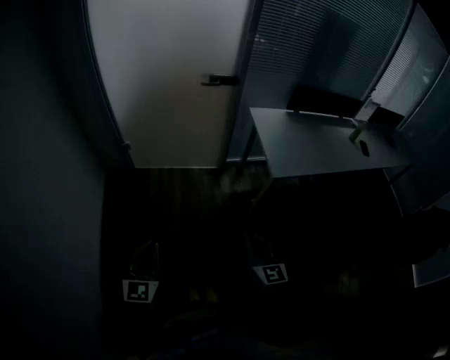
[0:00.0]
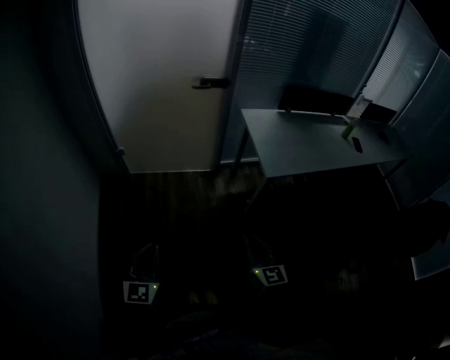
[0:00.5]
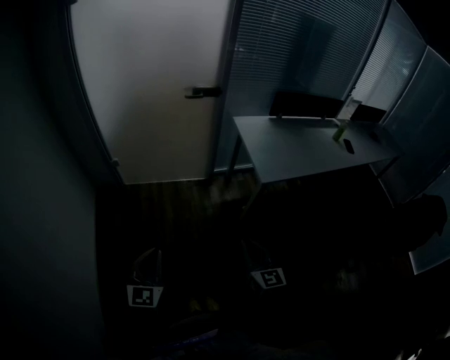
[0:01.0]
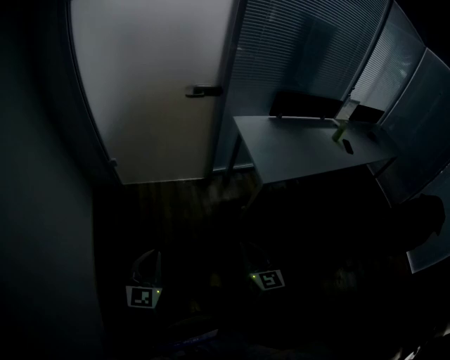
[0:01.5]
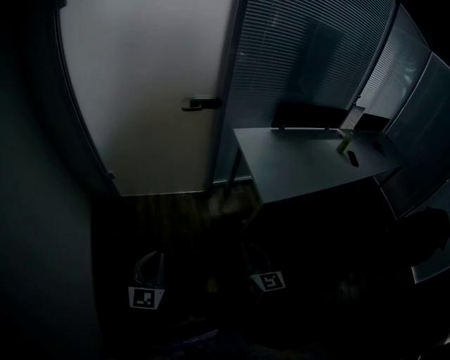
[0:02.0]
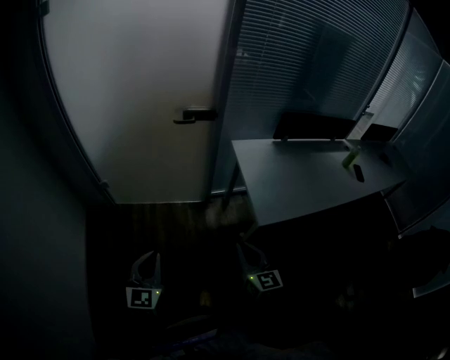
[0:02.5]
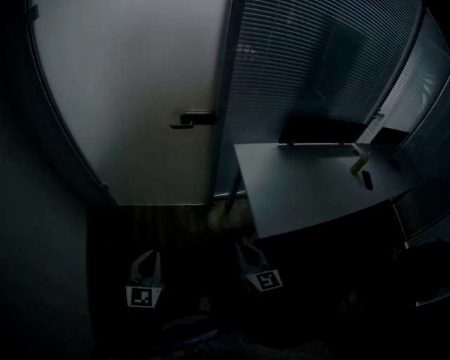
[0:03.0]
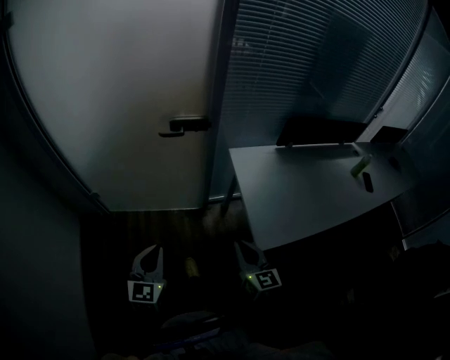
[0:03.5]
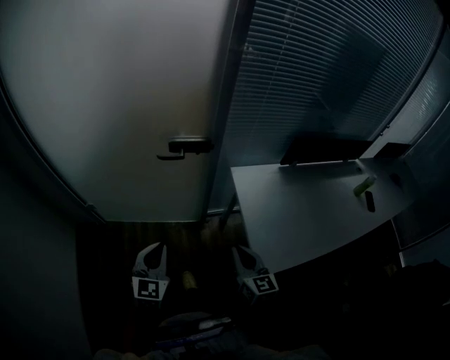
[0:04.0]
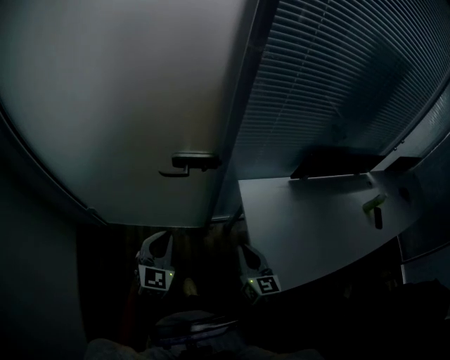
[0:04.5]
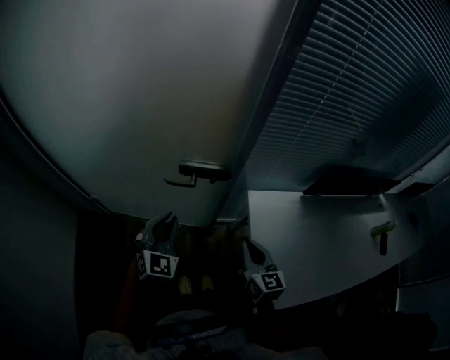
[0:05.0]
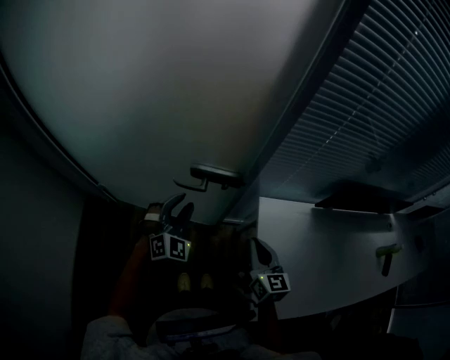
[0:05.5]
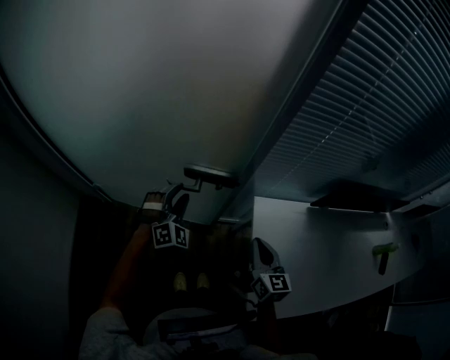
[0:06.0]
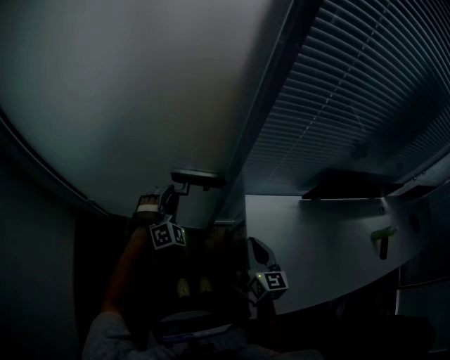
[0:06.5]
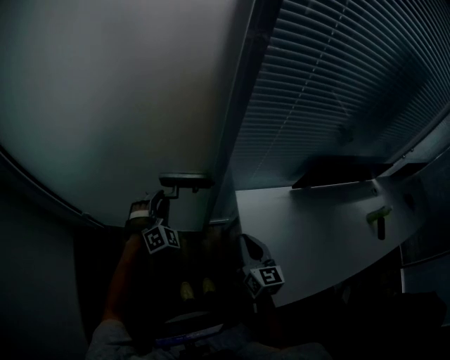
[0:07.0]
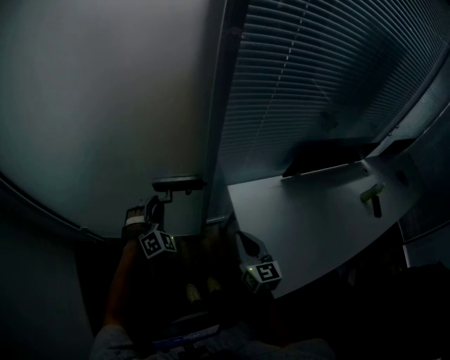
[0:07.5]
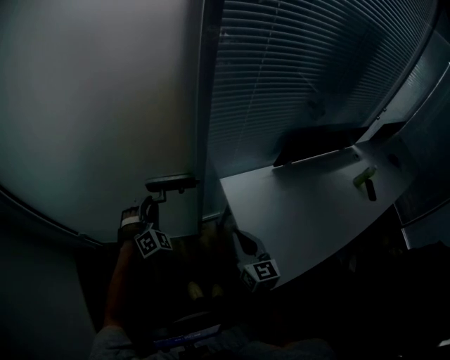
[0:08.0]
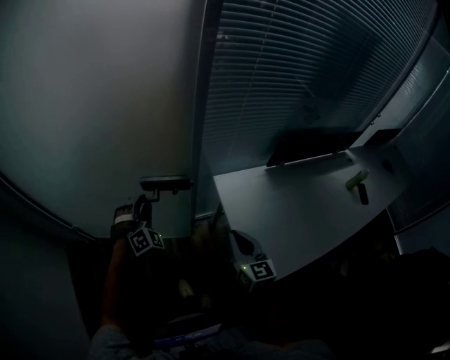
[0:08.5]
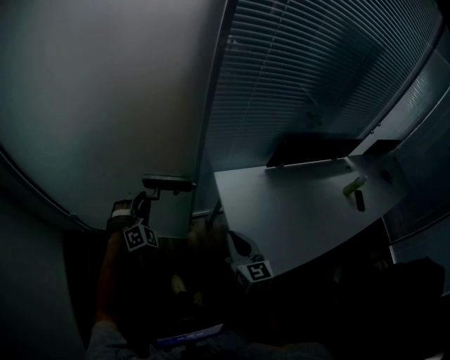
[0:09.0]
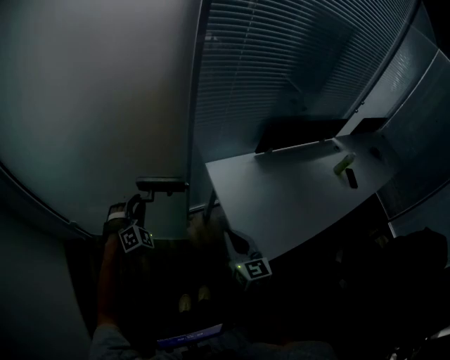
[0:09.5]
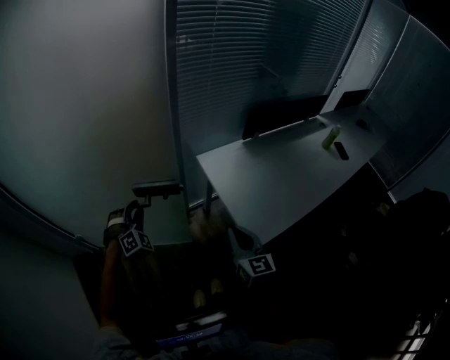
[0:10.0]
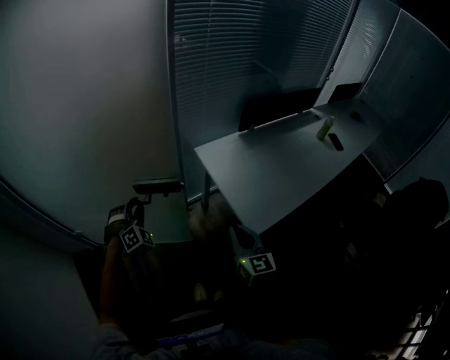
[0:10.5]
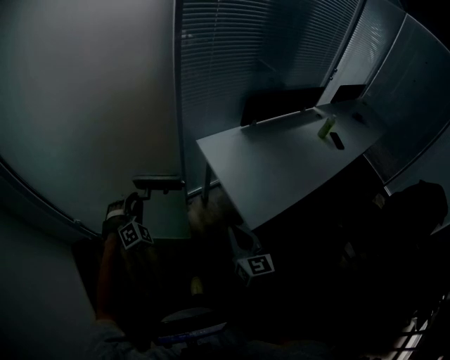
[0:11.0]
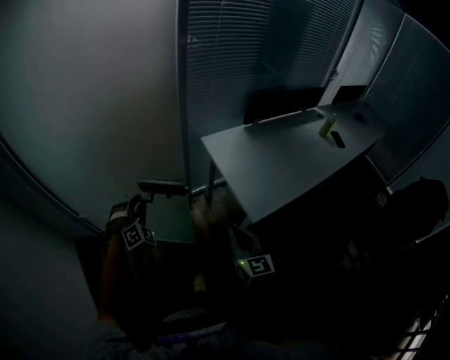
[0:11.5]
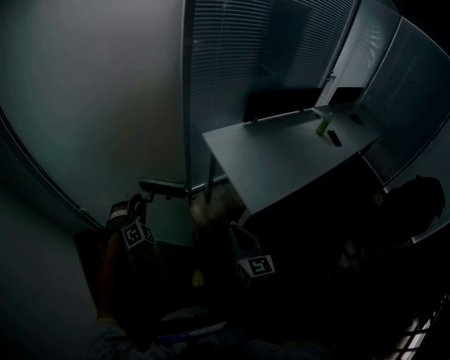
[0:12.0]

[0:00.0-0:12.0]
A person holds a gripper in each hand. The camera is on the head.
0:00.0 to 0:02.0: The two grippers go some 10 cm forward.
0:02.0 to 0:04.0: Both grippers move forward, approximately 35 cm.
0:04.0 to 0:06.0: The two grippers go some 25 cm forward. The left gripper twists some 40 degrees clockwise, seen from behind, and opens up.
0:06.0 to 0:08.0: The right gripper goes some 5 cm backward.
0:08.0 to 0:10.0: The two grippers go some 15 cm backward.
0:10.0 to 0:12.0: Both grippers move backward, approximately 15 cm.

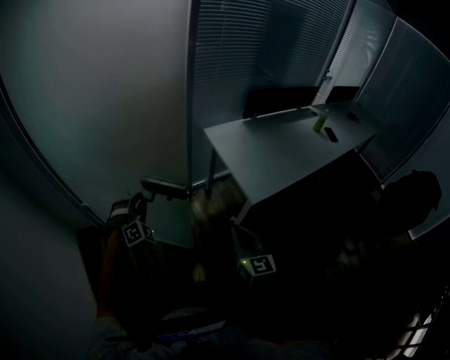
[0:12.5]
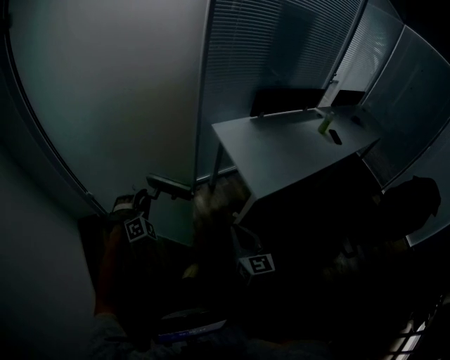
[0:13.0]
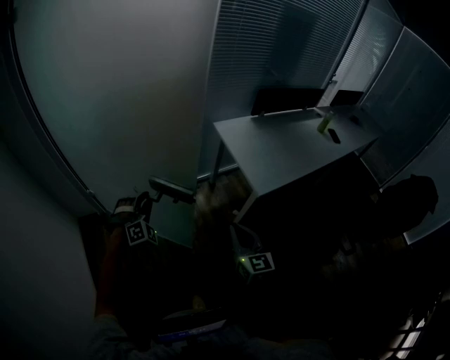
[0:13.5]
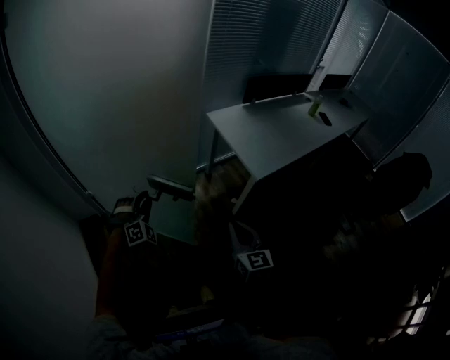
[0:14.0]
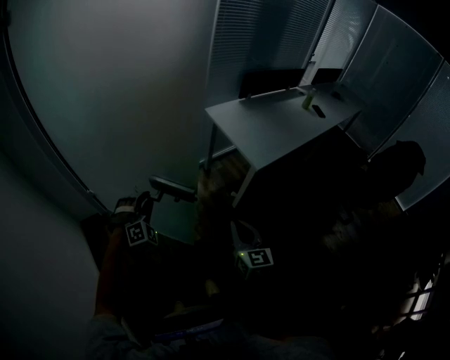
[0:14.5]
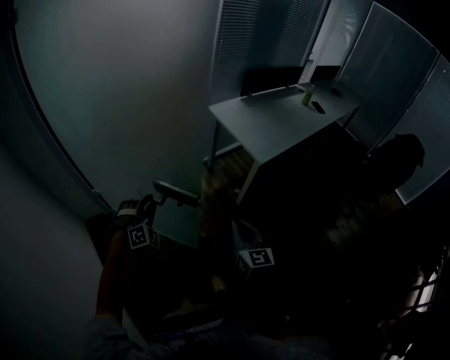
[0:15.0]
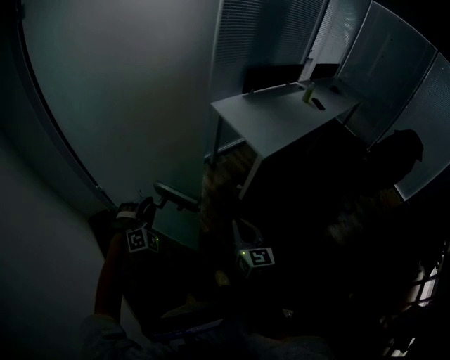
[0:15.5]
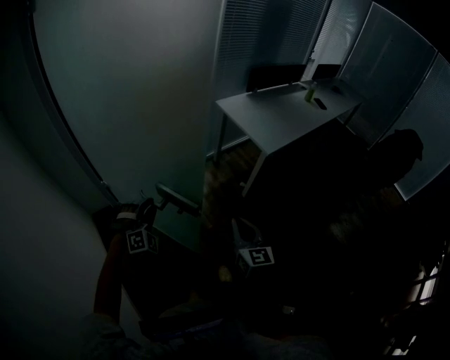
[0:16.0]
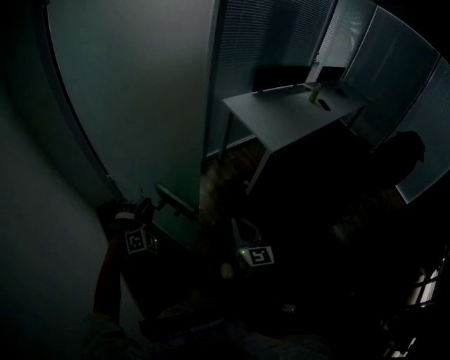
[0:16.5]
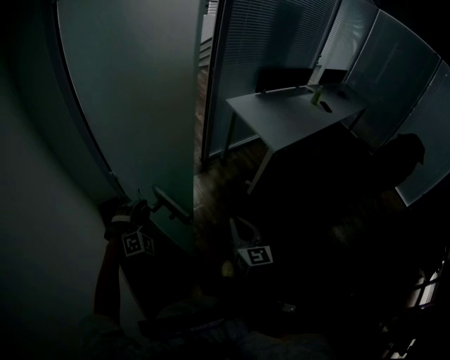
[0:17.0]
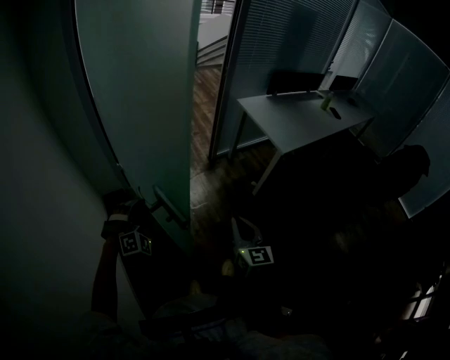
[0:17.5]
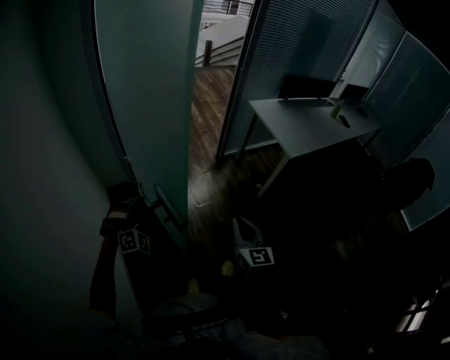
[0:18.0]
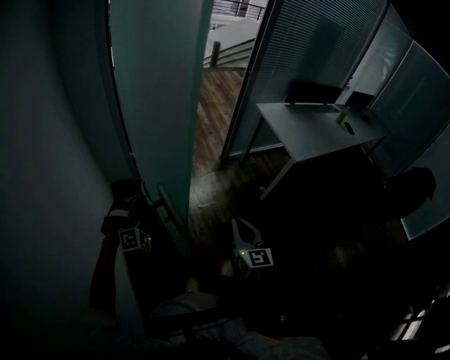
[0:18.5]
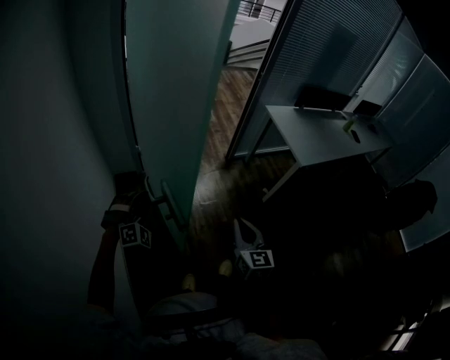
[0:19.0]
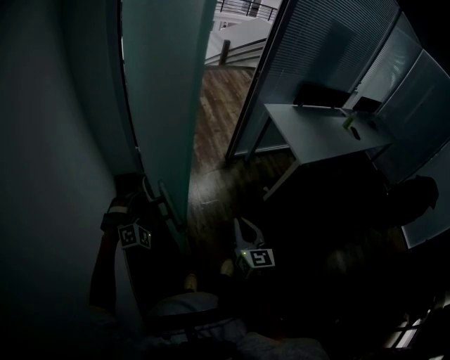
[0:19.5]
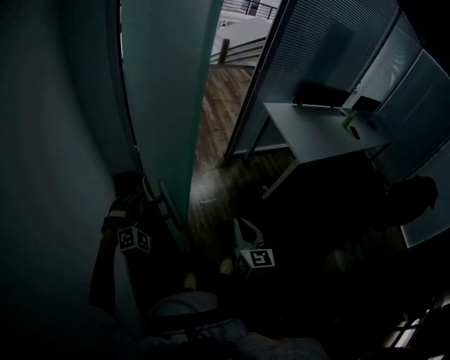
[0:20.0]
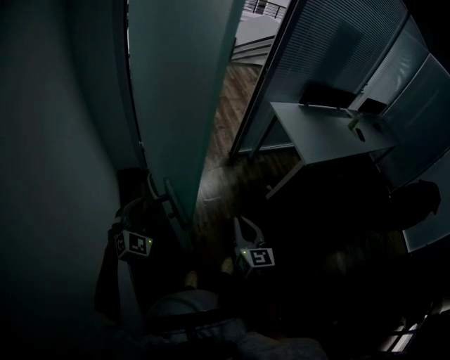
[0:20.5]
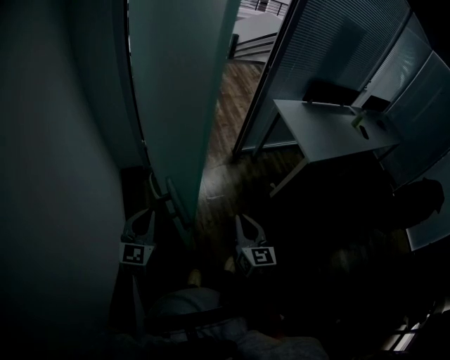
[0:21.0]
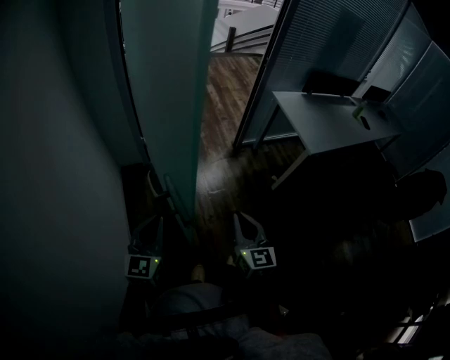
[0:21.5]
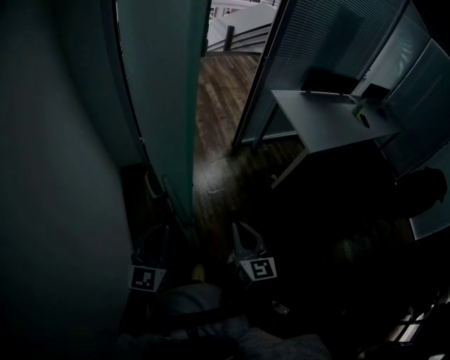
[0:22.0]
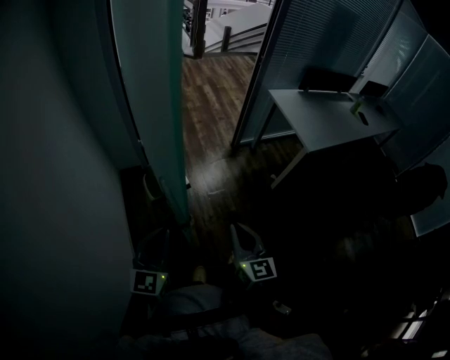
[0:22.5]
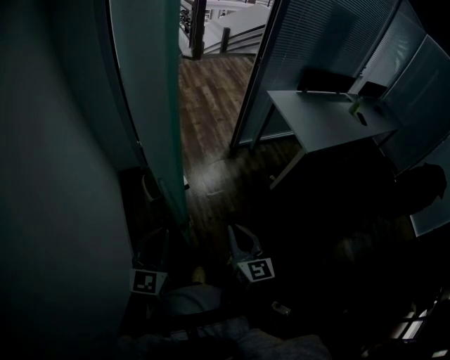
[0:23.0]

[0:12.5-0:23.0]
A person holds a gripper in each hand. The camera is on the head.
0:12.5 to 0:14.5: Both grippers move backward and to the left, about 15 cm.
0:14.5 to 0:16.5: Both grippers travel together backward and to the left, about 20 cm.
0:16.5 to 0:19.0: The left gripper is displaced to the left and backward by approximately 15 cm. The right gripper moves to the left, approximately 10 cm.
0:19.0 to 0:21.0: The left gripper is displaced backward and upward by approximately 10 cm, rotates around the line of its fingers by about 60 degrees, counterclockwise from behind, and closes.
0:21.0 to 0:23.0: The left gripper travels to the right and backward by approximately 10 cm.

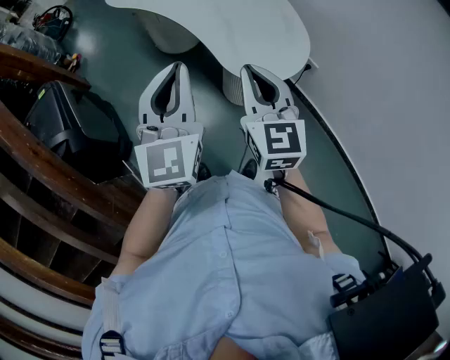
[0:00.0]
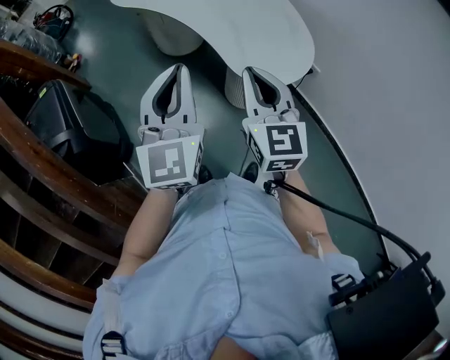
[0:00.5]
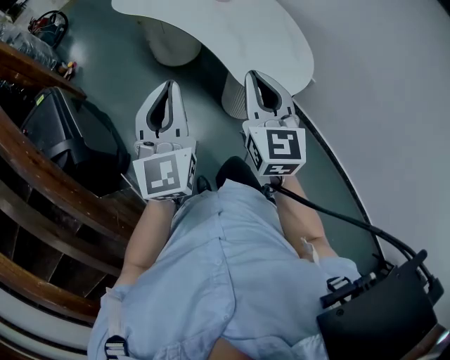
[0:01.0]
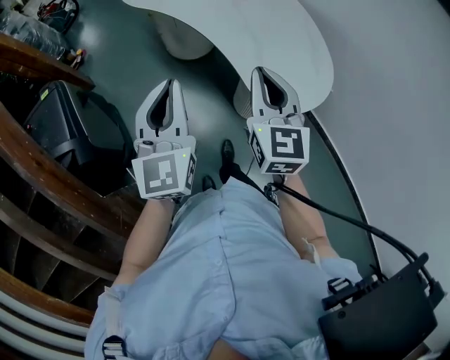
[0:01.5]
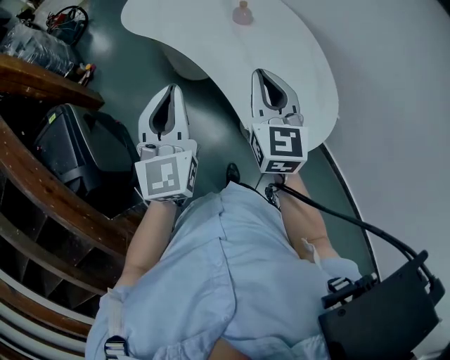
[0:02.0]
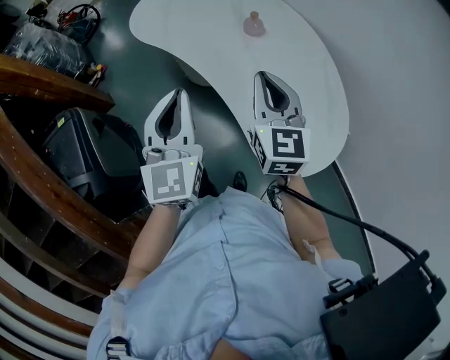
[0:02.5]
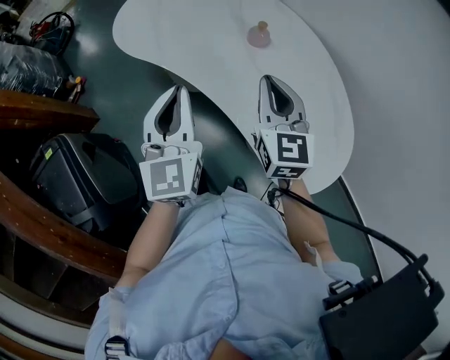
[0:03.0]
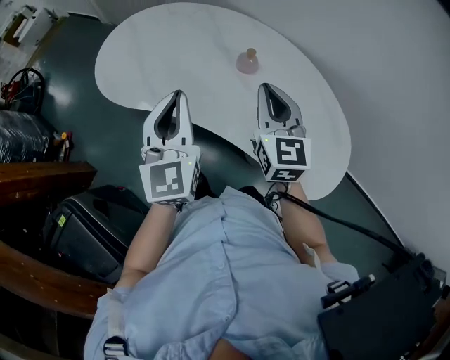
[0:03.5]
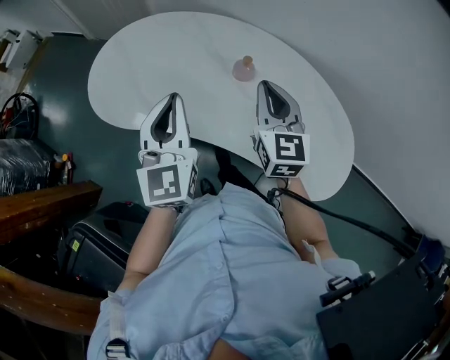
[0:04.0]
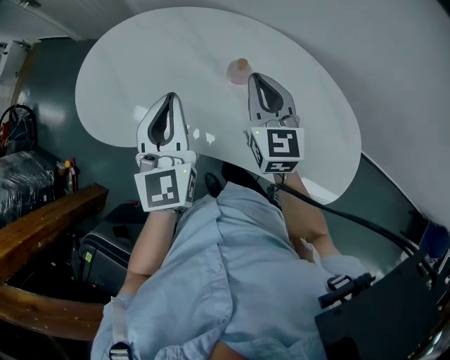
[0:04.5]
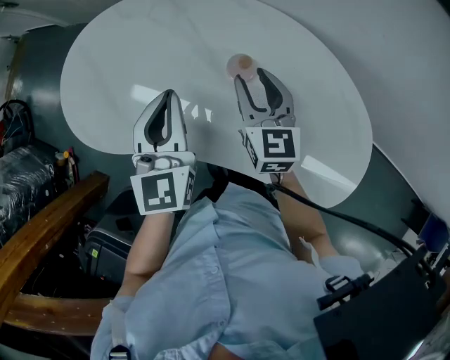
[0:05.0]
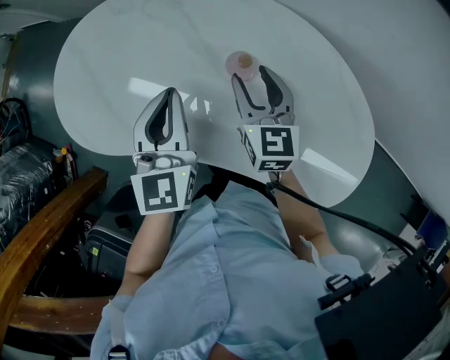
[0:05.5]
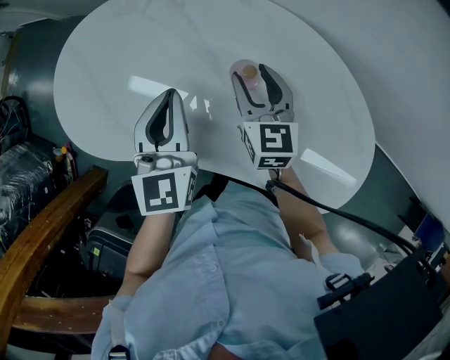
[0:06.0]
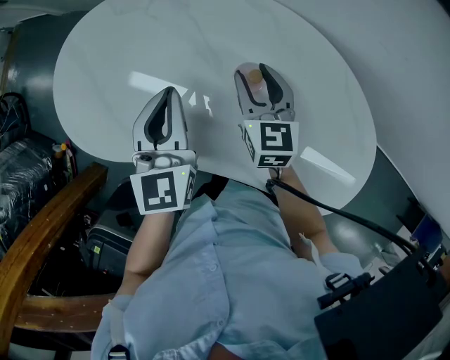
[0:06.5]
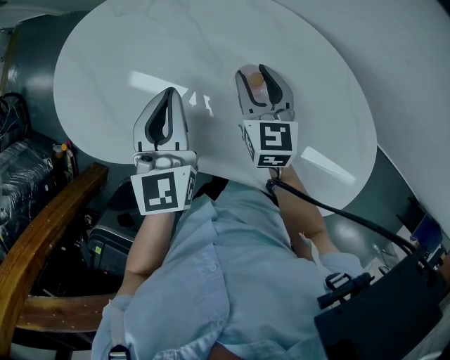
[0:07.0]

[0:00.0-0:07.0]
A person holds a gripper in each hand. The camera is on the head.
0:00.0 to 0:02.0: The right gripper is displaced forward by some 20 cm. Meanwhile the left gripper is displaced forward and to the left by some 15 cm.
0:02.0 to 0:03.5: Both grippers move forward, some 20 cm. The left gripper changes its angle by approximately 20 degrees.
0:03.5 to 0:05.0: The right gripper heads downward and forward, covering approximately 10 cm, and opens its fingers. Meanwhile the left gripper travels forward by some 10 cm.
0:05.0 to 0:07.0: The grippers move only a little.
